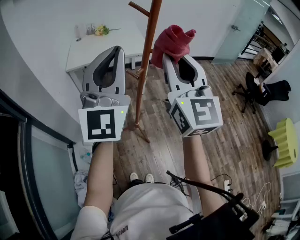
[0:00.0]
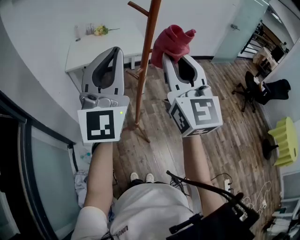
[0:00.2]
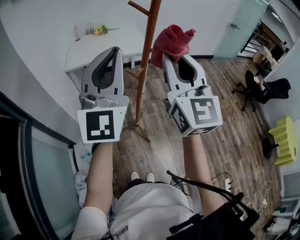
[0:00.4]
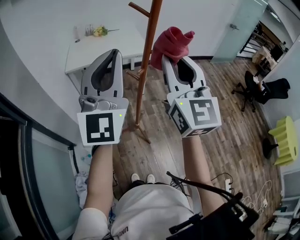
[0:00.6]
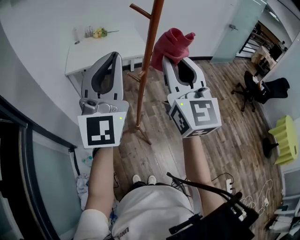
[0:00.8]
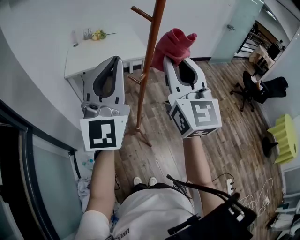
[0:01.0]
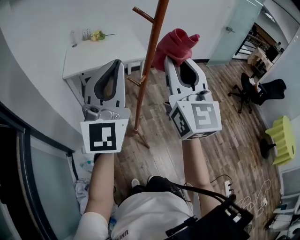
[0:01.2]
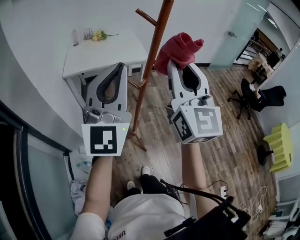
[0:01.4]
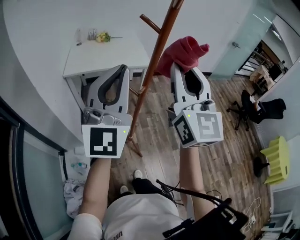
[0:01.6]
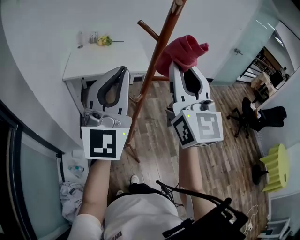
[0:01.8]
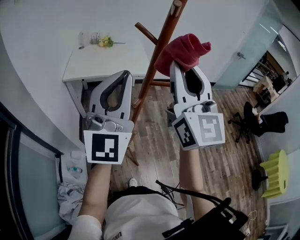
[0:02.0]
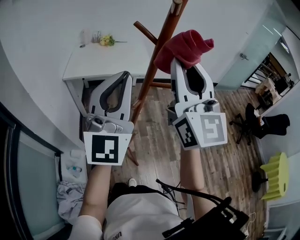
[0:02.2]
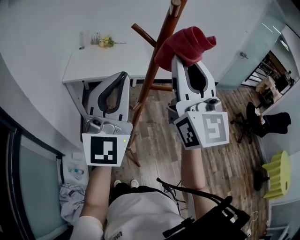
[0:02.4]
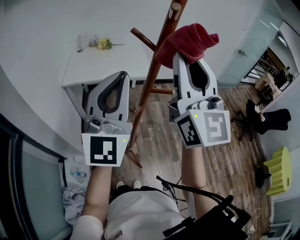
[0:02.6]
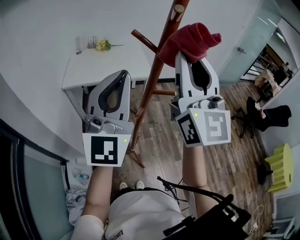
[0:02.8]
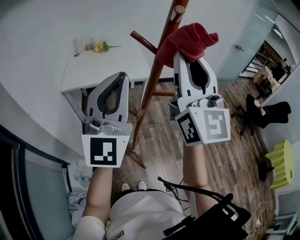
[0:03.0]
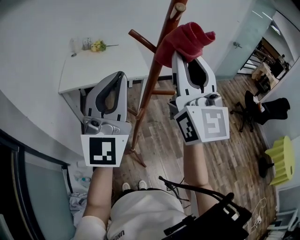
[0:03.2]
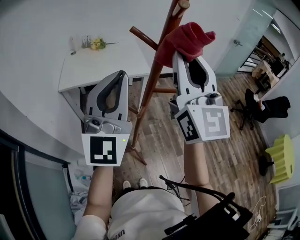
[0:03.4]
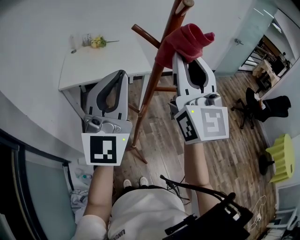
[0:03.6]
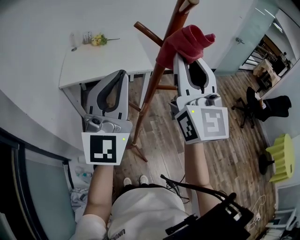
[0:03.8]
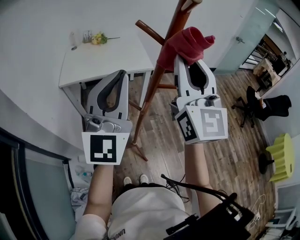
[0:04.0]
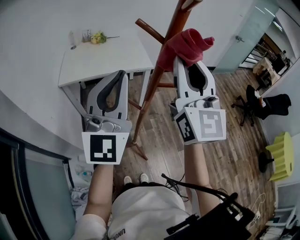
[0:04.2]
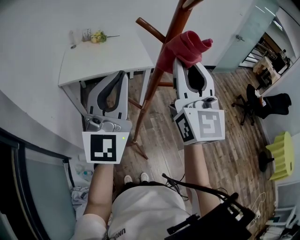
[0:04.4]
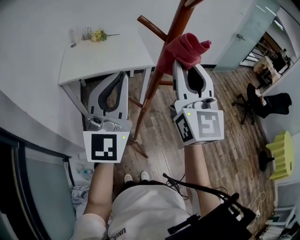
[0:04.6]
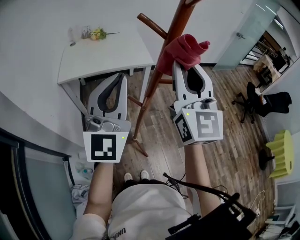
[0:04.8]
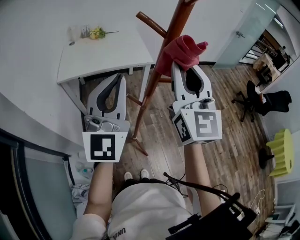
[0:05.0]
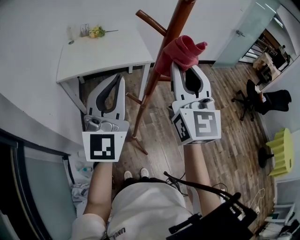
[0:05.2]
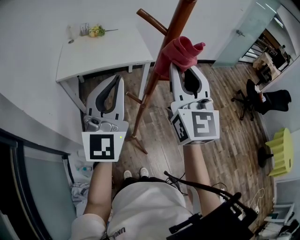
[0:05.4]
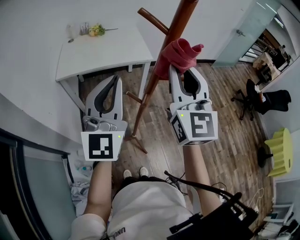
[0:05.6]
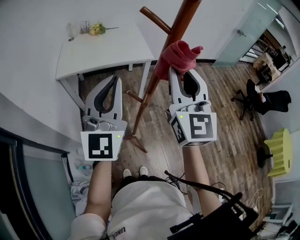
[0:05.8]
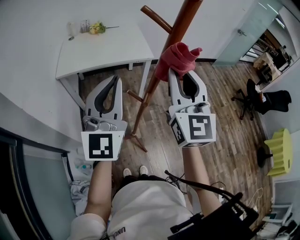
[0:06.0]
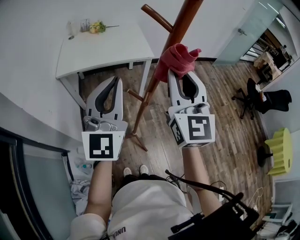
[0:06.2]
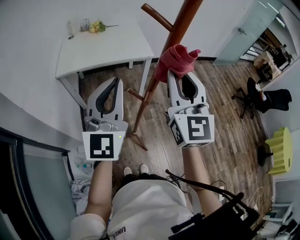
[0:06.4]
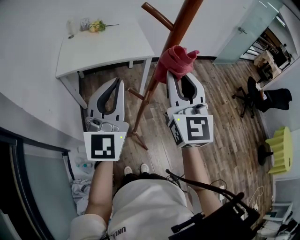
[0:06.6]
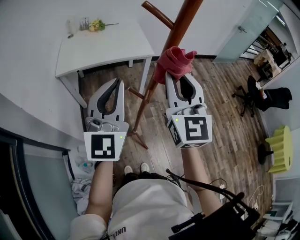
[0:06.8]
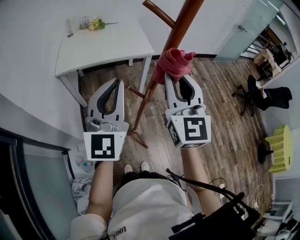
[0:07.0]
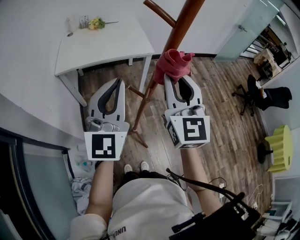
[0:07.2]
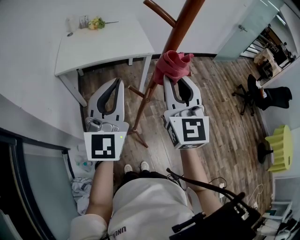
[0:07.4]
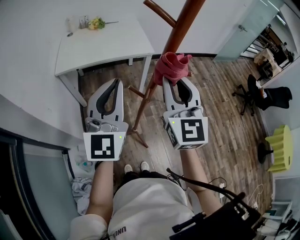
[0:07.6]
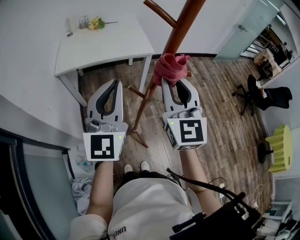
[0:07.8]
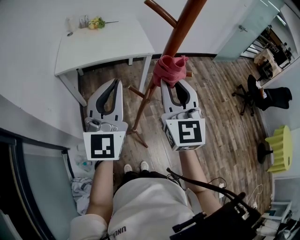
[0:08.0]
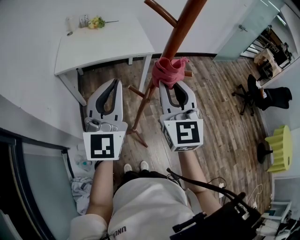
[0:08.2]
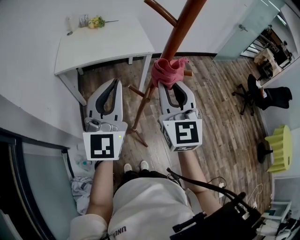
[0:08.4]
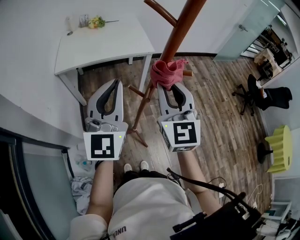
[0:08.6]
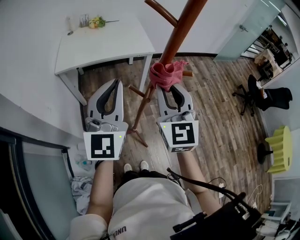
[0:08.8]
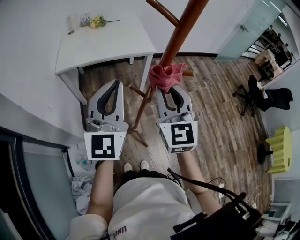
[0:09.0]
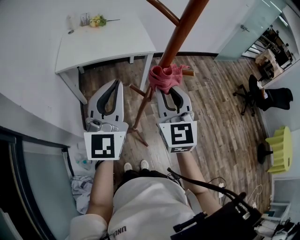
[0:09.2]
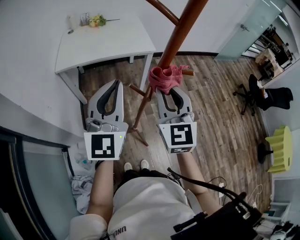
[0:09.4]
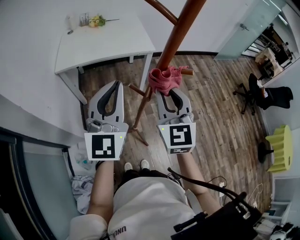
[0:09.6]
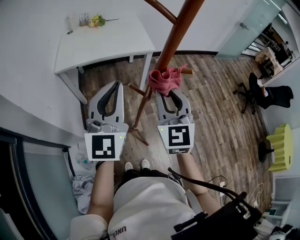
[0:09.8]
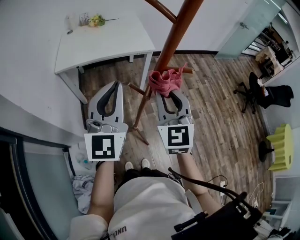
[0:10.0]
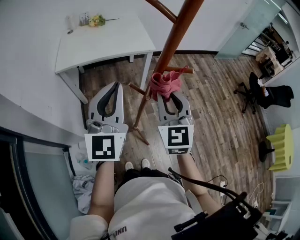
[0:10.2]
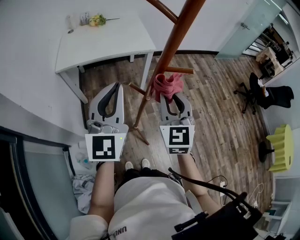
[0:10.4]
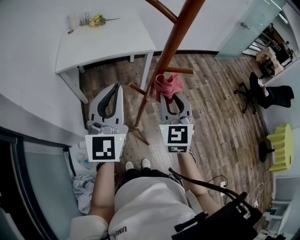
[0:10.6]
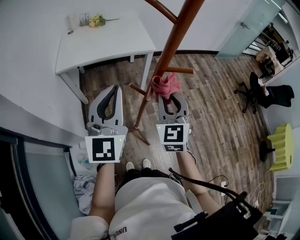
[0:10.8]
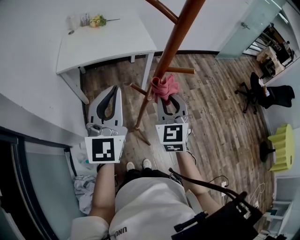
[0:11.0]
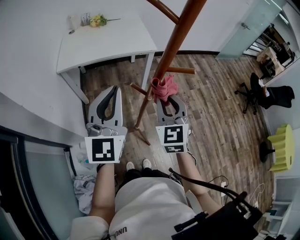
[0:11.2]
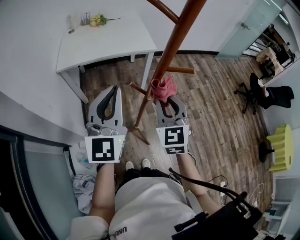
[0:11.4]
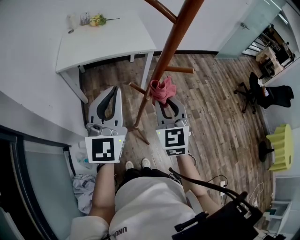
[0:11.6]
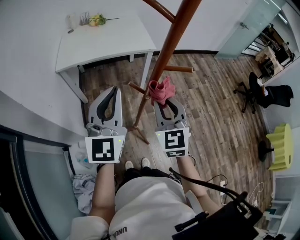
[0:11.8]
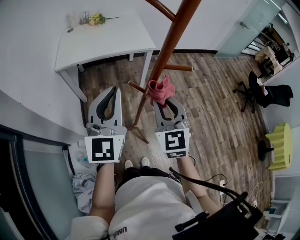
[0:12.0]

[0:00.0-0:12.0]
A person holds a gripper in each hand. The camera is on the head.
0:00.0 to 0:01.6: The grippers make only small movements.
0:01.6 to 0:03.0: The two grippers go about 5 cm forward.
0:03.0 to 0:04.4: The right gripper goes about 5 cm downward.
0:04.4 to 0:06.0: The right gripper heads downward, covering approximately 5 cm. Meanwhile the left gripper shifts by approximately 5 cm.
0:06.0 to 0:07.6: The right gripper ends up roughly 5 cm from where it was.
0:07.6 to 0:09.0: There are only small adjustments of the grippers.
0:09.0 to 0:10.4: The right gripper ends up roughly 5 cm from where it was.
0:10.4 to 0:12.0: The grippers make only small movements.

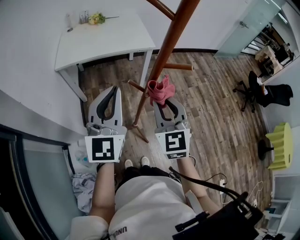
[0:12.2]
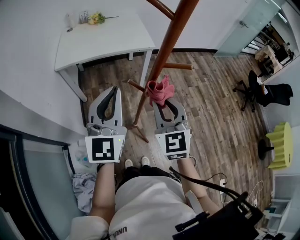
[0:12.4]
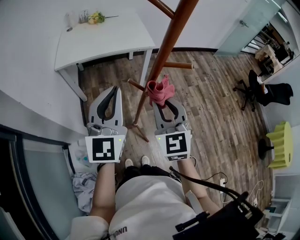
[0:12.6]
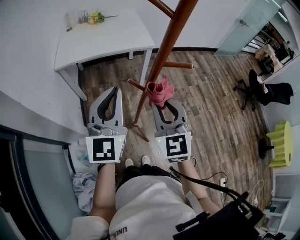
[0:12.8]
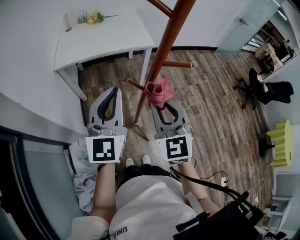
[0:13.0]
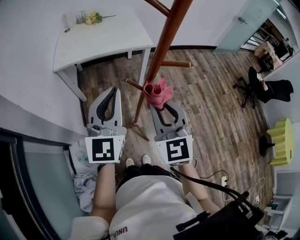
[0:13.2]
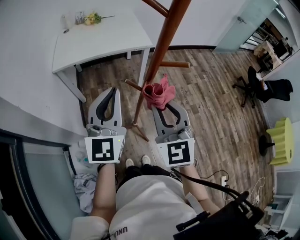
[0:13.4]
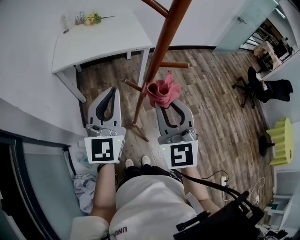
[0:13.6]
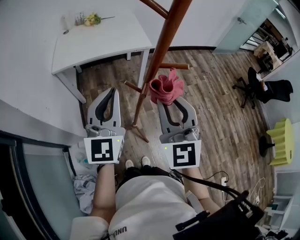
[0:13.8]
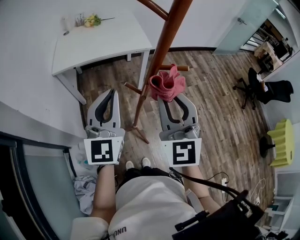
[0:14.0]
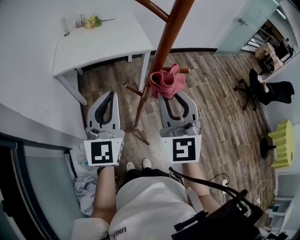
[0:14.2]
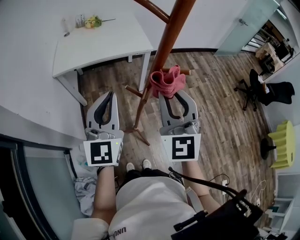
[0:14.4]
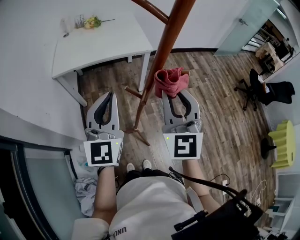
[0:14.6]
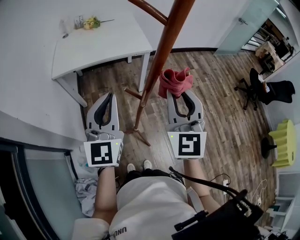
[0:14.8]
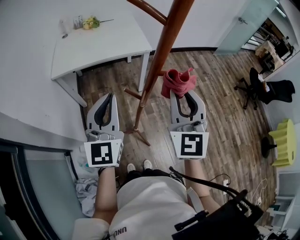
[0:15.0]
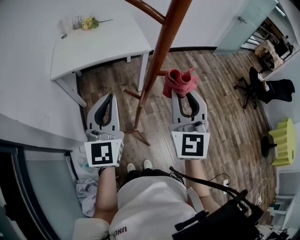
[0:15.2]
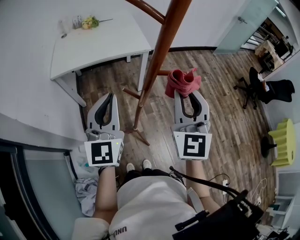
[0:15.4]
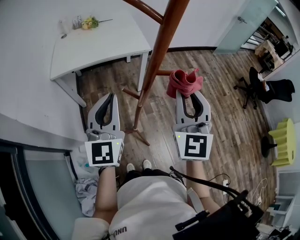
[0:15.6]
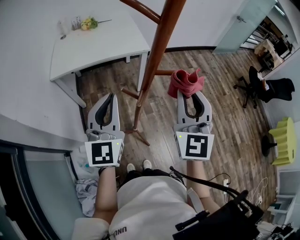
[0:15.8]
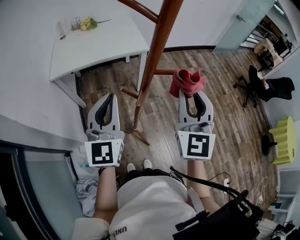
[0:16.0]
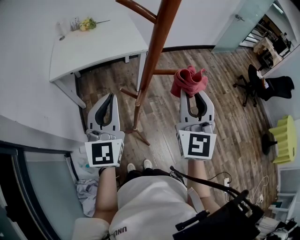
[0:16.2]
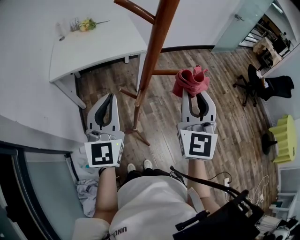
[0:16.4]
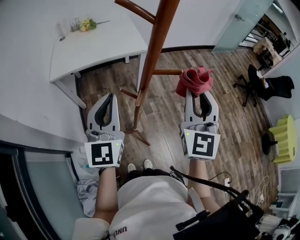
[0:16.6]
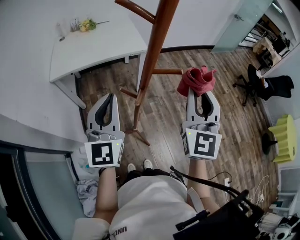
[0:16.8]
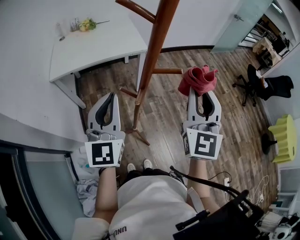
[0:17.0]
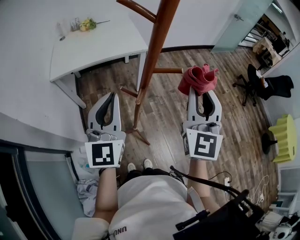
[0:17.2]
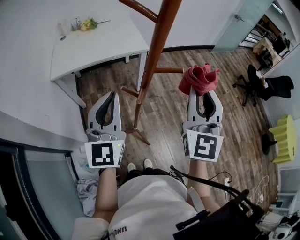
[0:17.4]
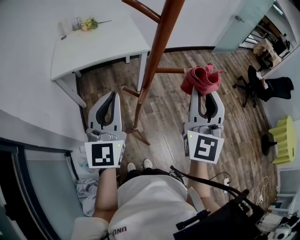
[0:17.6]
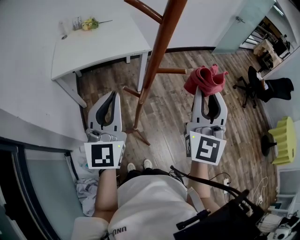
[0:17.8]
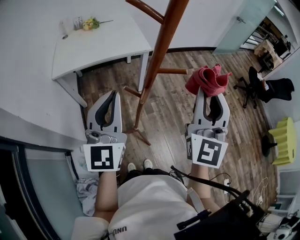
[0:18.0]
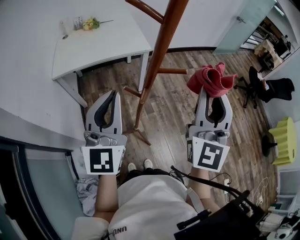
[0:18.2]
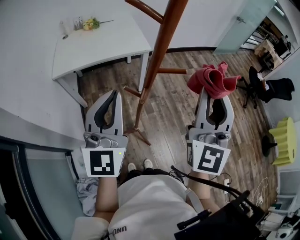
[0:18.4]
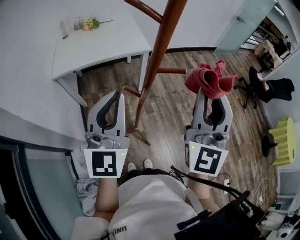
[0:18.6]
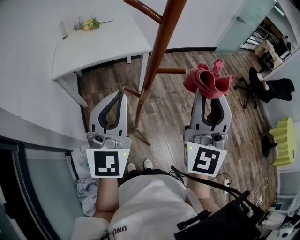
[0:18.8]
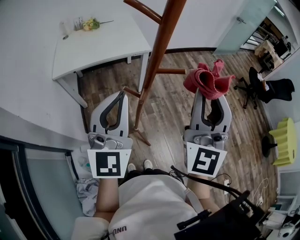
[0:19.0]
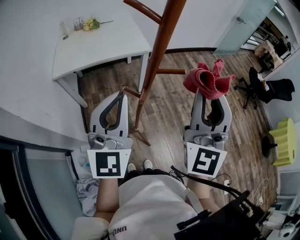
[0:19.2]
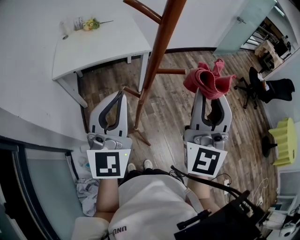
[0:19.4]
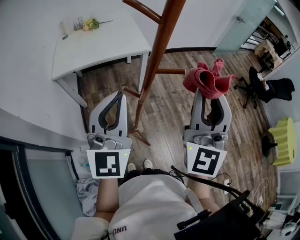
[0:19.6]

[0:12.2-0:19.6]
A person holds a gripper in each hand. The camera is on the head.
0:12.2 to 0:13.6: The right gripper heads upward, covering roughly 5 cm.
0:13.6 to 0:15.2: The right gripper goes about 10 cm to the right and forward.
0:15.2 to 0:16.6: The right gripper heads to the right, covering some 5 cm.
0:16.6 to 0:18.2: The right gripper moves upward, approximately 5 cm.
0:18.2 to 0:19.6: The grippers move only a little.

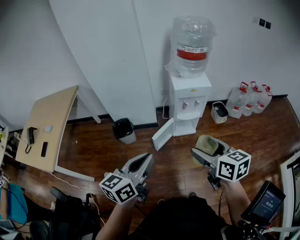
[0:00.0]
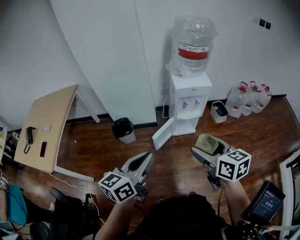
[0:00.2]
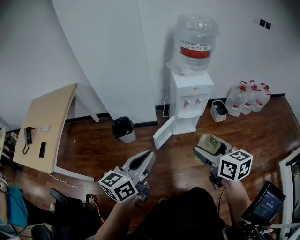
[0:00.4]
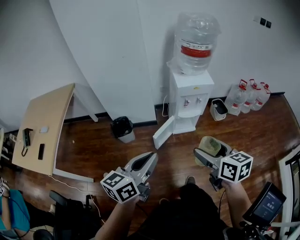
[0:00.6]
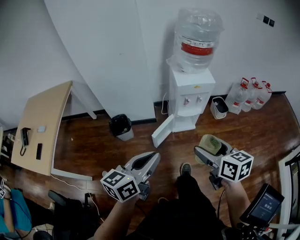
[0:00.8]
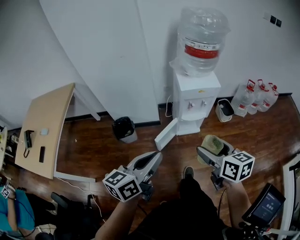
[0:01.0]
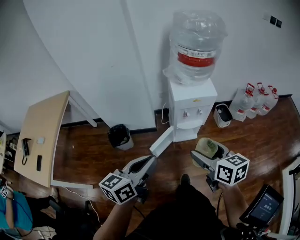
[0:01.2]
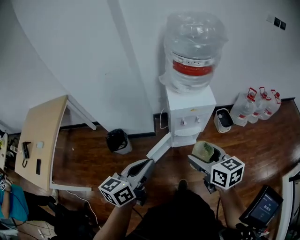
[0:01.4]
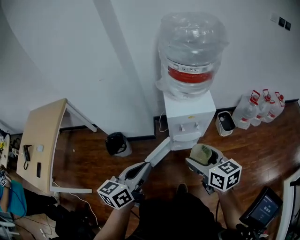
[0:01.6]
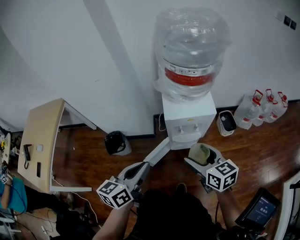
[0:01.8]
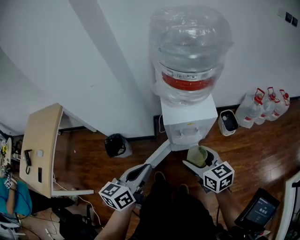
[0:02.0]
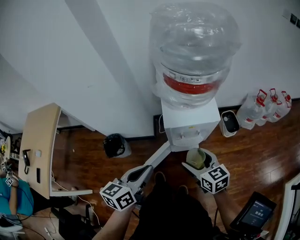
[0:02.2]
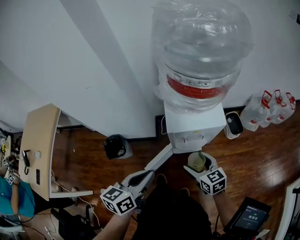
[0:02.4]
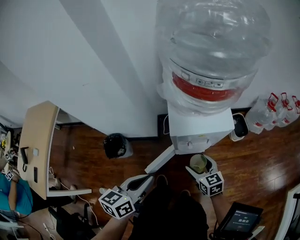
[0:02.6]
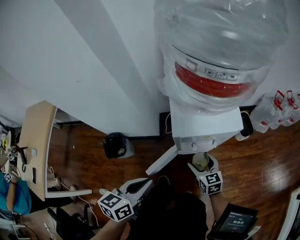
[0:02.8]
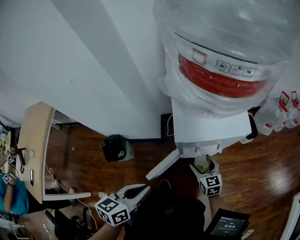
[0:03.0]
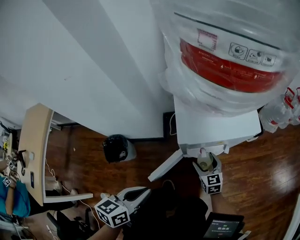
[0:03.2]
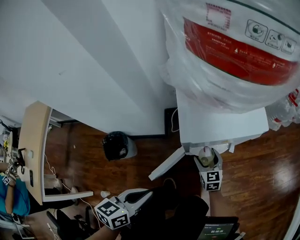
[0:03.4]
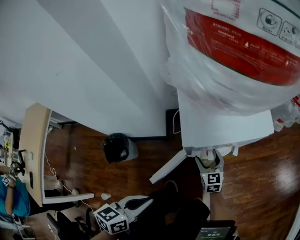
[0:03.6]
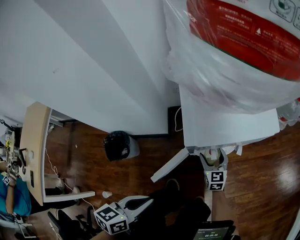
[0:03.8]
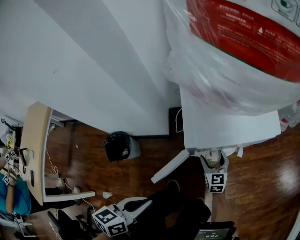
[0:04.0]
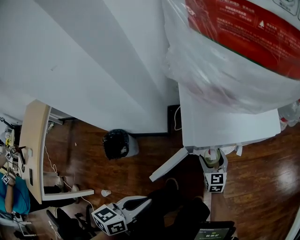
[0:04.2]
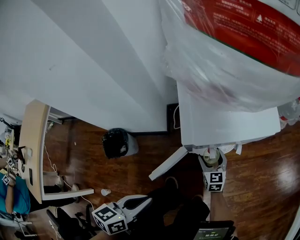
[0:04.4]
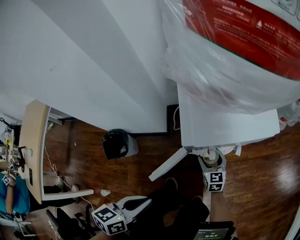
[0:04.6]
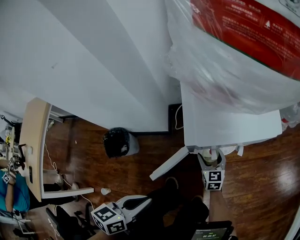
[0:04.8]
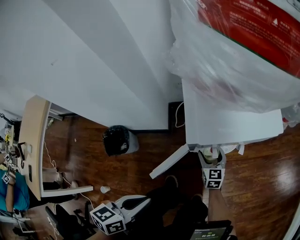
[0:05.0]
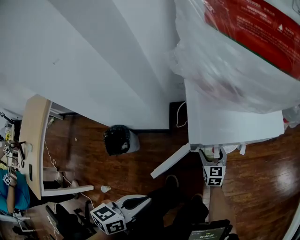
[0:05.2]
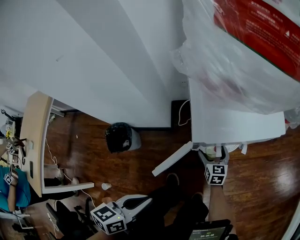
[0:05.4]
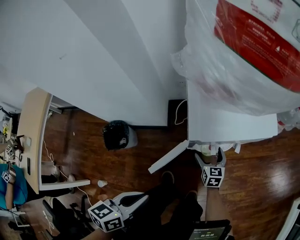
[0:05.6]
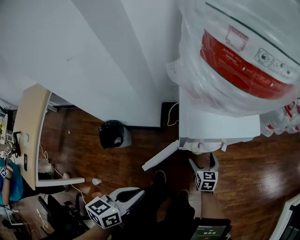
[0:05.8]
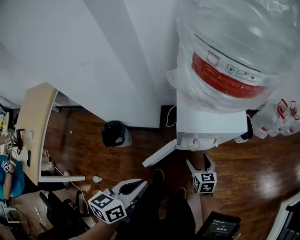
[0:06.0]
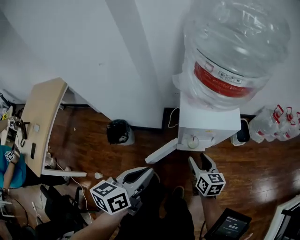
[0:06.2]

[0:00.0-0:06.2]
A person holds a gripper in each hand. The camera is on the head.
0:00.0 to 0:01.6: The grippers both shift forward by roughly 25 cm. The left gripper opens its fingers.
0:01.6 to 0:03.2: The left gripper moves downward and forward, about 30 cm, and rotates approximately 20 degrees; the right gripper travels downward and forward by some 50 cm.
0:03.2 to 0:04.6: The two grippers go some 5 cm downward.
0:04.6 to 0:06.2: Both grippers travel together upward, about 25 cm.
